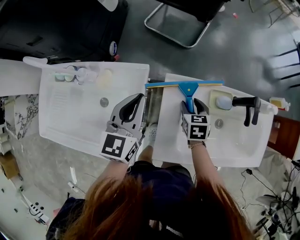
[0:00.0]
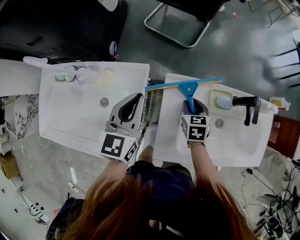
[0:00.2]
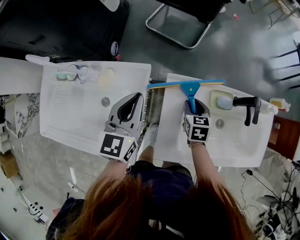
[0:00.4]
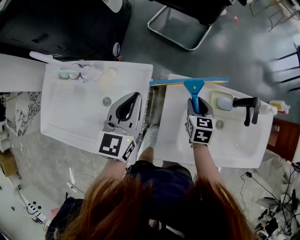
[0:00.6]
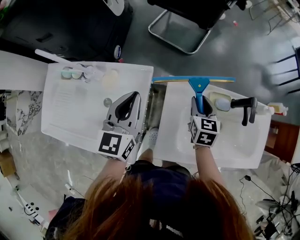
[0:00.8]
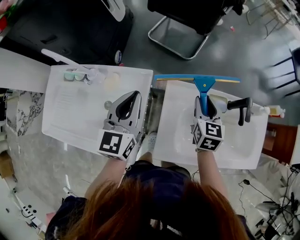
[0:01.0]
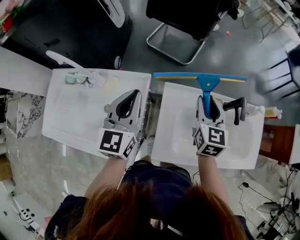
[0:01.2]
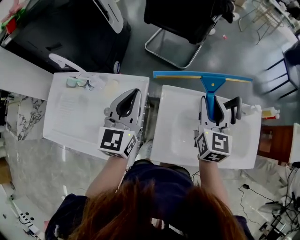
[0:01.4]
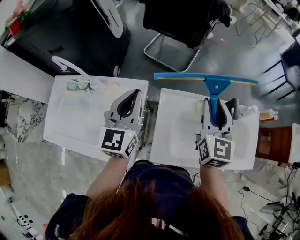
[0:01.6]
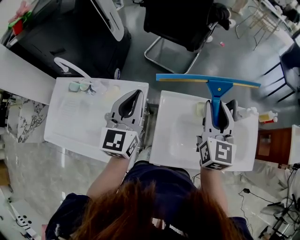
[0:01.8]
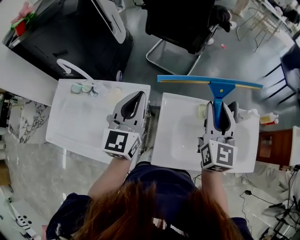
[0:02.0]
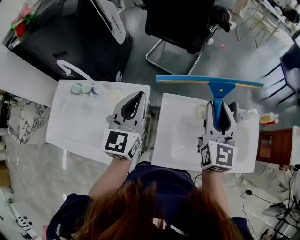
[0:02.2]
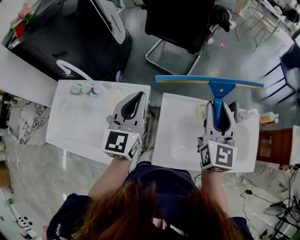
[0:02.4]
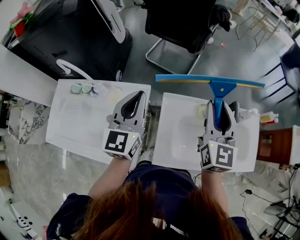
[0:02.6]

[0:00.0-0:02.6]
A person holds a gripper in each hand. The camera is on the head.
0.0 to 1.2 s: The right gripper travels upward by approximately 20 cm, and tilts its fingers some 30 degrees upward. Meanwhile the left gripper heads upward, covering about 10 cm.
1.2 to 2.6 s: The right gripper heads upward, covering approximately 15 cm; the left gripper heads upward, covering approximately 5 cm.

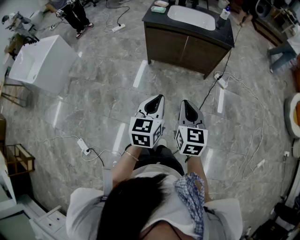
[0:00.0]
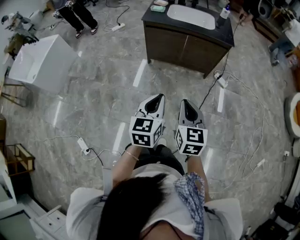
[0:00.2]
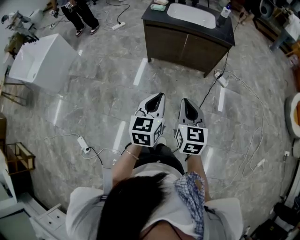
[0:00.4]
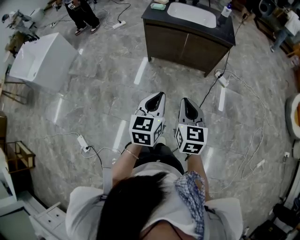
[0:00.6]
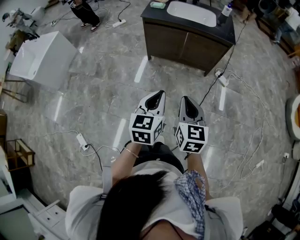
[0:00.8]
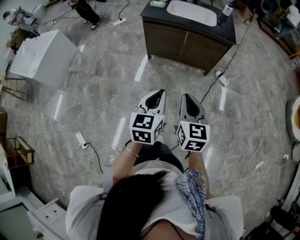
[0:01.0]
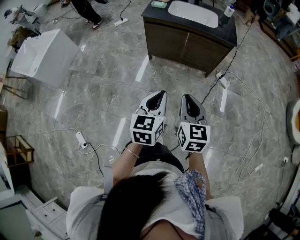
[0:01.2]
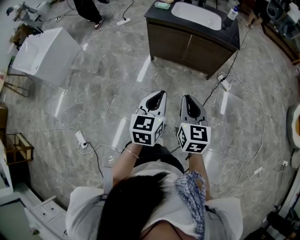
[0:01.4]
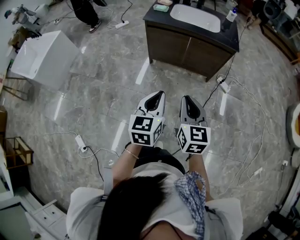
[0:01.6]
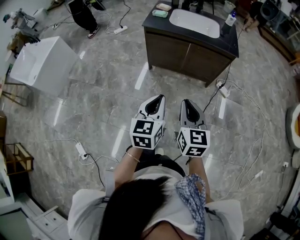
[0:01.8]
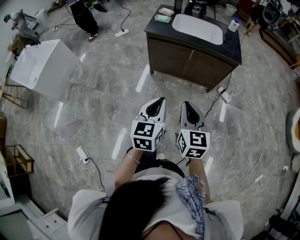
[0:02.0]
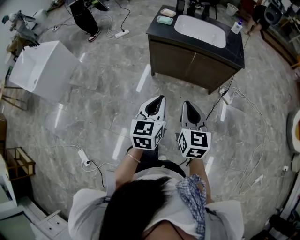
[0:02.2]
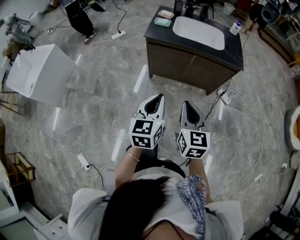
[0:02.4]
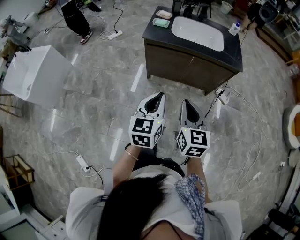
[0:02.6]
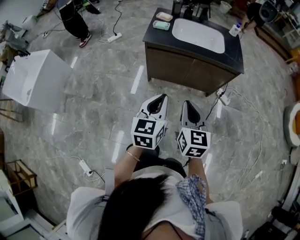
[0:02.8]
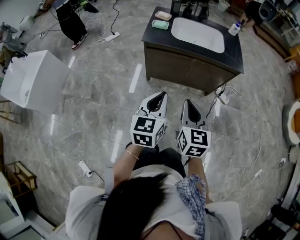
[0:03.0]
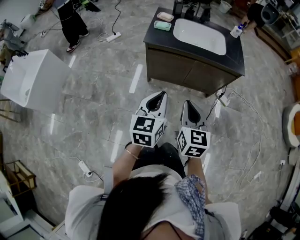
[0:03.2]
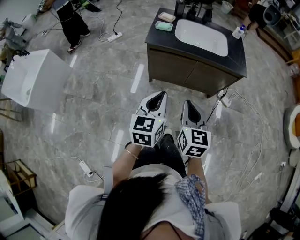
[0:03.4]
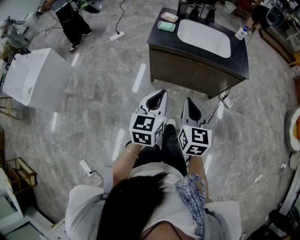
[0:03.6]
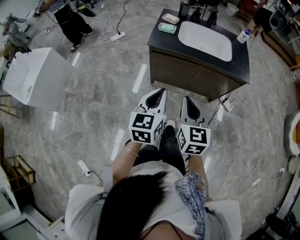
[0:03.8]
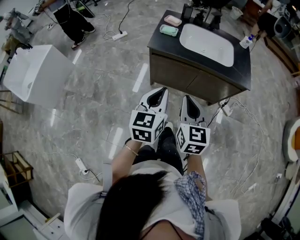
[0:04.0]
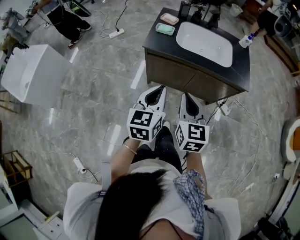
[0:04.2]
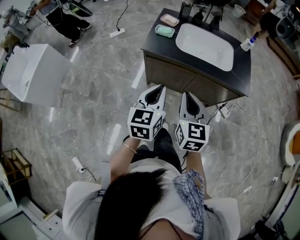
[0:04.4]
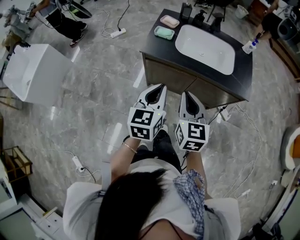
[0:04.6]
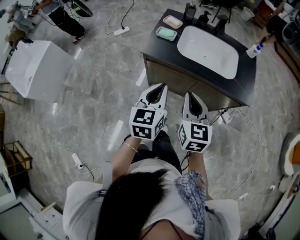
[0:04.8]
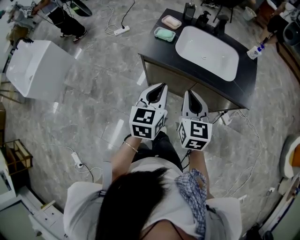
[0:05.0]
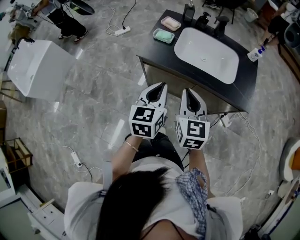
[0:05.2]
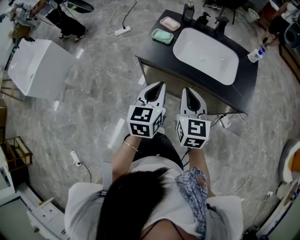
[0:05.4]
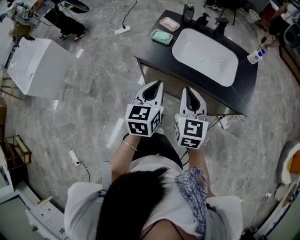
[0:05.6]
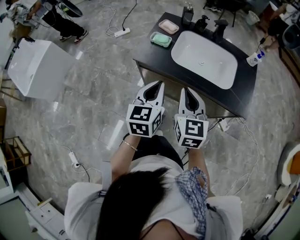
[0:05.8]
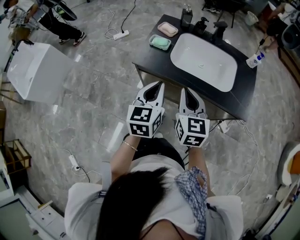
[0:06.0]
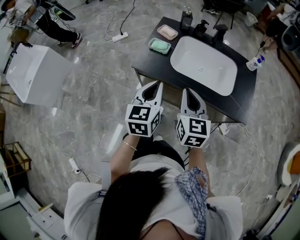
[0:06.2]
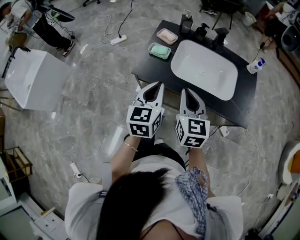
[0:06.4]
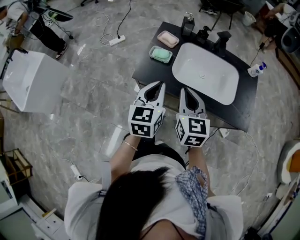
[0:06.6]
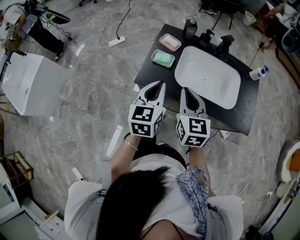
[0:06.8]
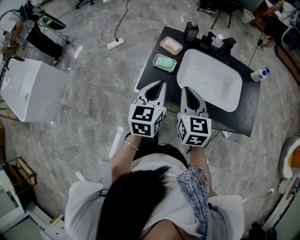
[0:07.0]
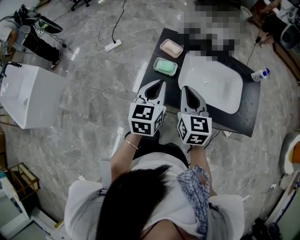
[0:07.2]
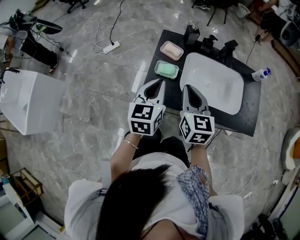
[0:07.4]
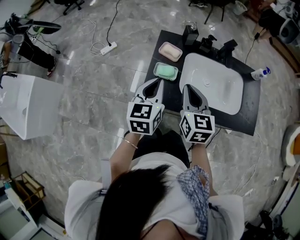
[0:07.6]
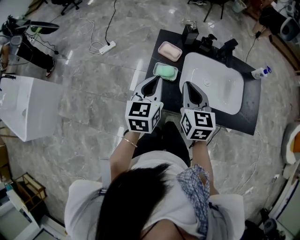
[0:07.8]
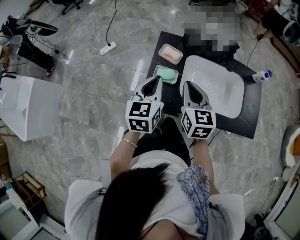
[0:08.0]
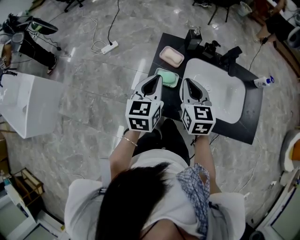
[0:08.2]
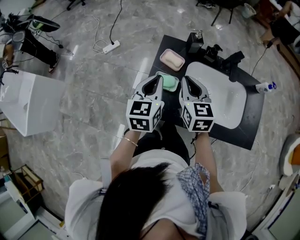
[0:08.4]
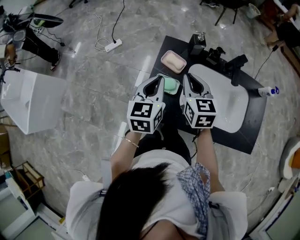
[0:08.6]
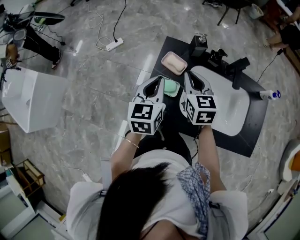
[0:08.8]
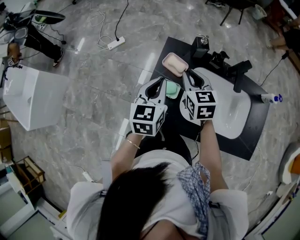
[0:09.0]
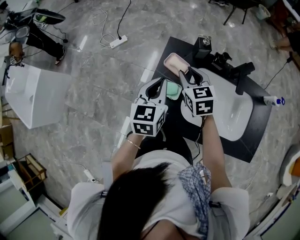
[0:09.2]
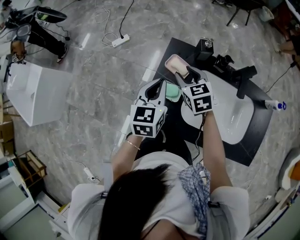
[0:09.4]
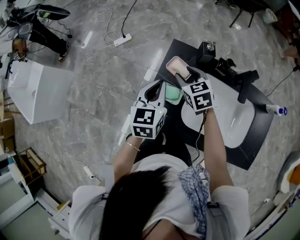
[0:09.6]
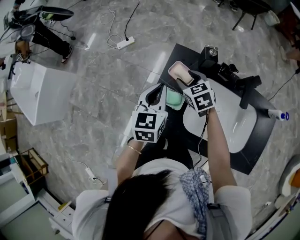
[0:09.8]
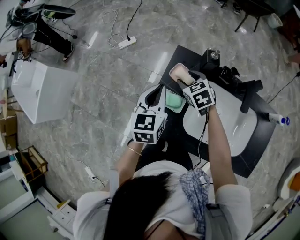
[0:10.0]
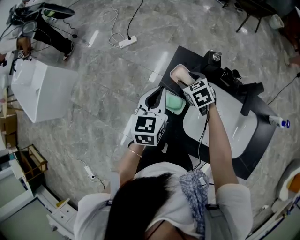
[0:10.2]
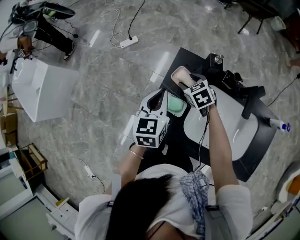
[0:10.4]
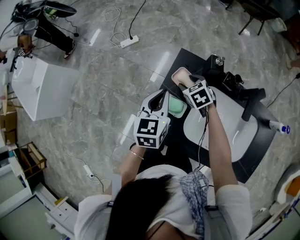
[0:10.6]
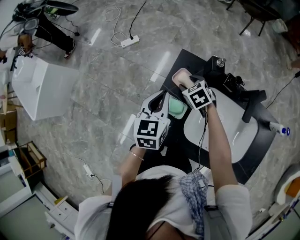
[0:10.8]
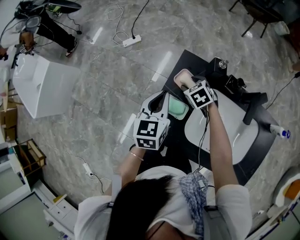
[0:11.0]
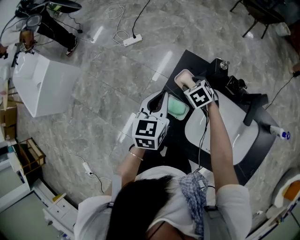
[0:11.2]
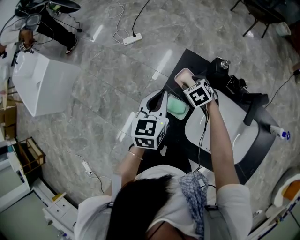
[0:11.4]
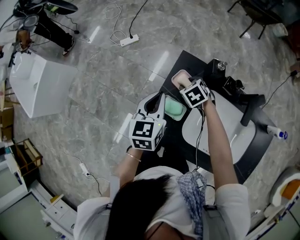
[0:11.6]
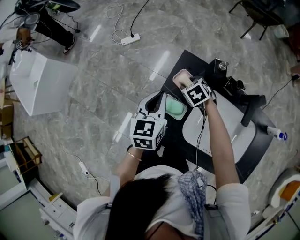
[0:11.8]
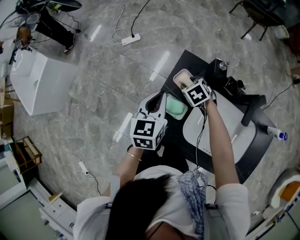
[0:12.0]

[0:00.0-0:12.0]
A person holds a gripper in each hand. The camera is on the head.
0.0 to 1.6 s: The grippers both shift forward by roughly 5 cm.
1.6 to 3.0 s: The two grippers go roughly 25 cm forward and to the left.
3.0 to 4.4 s: The two grippers go about 15 cm forward.
4.4 to 6.0 s: The grippers both shift forward by approximately 15 cm.
6.0 to 7.6 s: Both grippers move forward and to the left, approximately 25 cm.
7.6 to 9.0 s: The right gripper goes about 20 cm forward; the left gripper shifts some 10 cm forward.
9.0 to 10.4 s: The left gripper moves some 5 cm. Meanwhile the right gripper goes some 15 cm downward and forward, changes its angle by roughly 30 degrees, and opens its fingers.
10.4 to 12.0 s: The grippers move only a little.

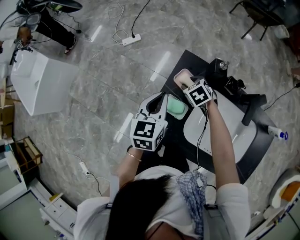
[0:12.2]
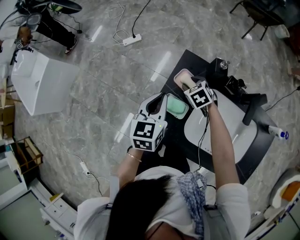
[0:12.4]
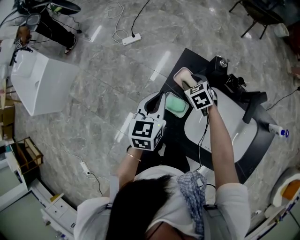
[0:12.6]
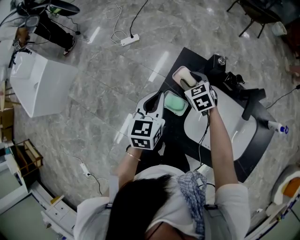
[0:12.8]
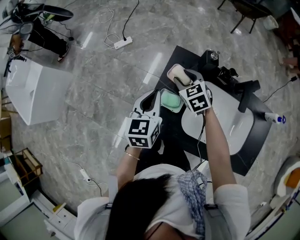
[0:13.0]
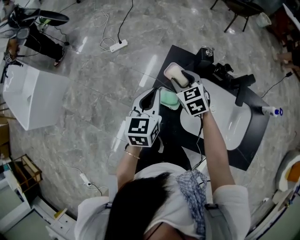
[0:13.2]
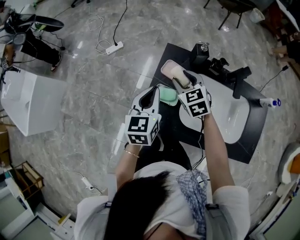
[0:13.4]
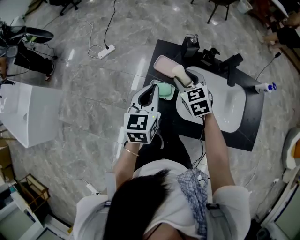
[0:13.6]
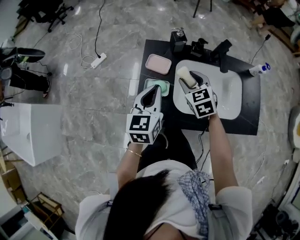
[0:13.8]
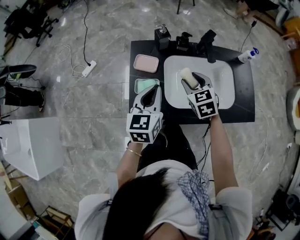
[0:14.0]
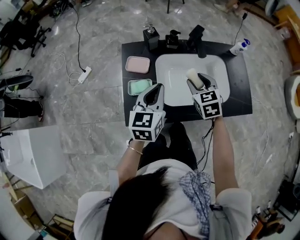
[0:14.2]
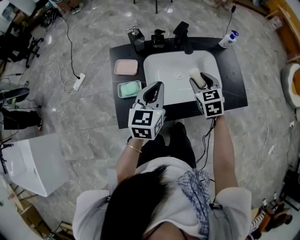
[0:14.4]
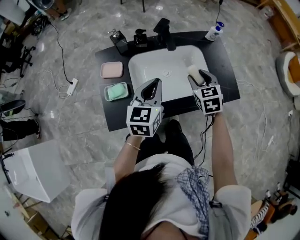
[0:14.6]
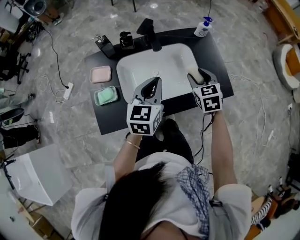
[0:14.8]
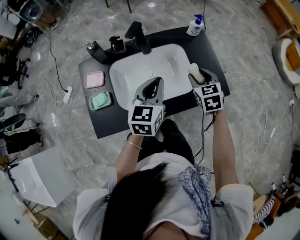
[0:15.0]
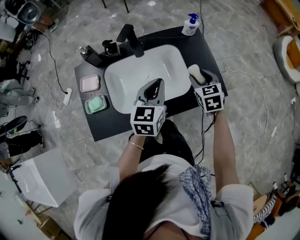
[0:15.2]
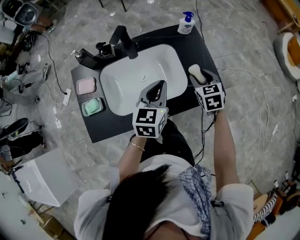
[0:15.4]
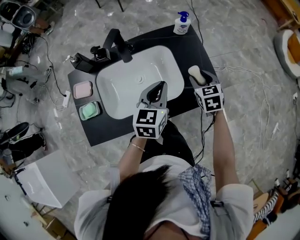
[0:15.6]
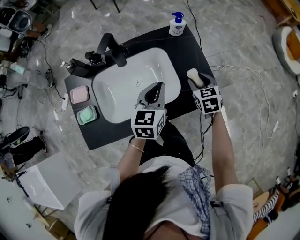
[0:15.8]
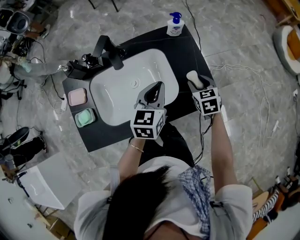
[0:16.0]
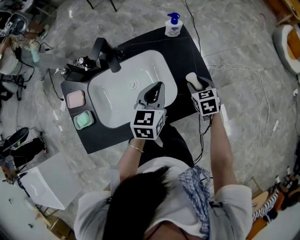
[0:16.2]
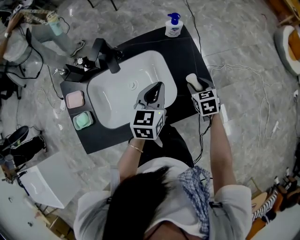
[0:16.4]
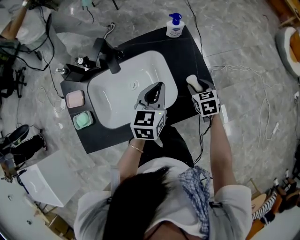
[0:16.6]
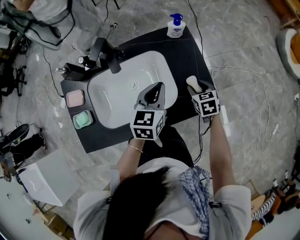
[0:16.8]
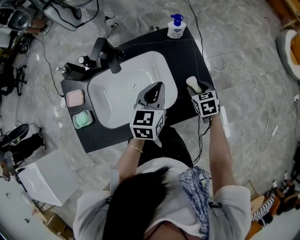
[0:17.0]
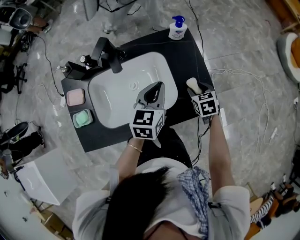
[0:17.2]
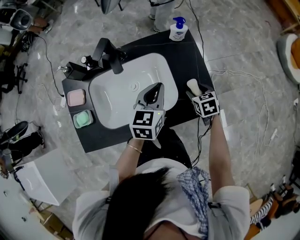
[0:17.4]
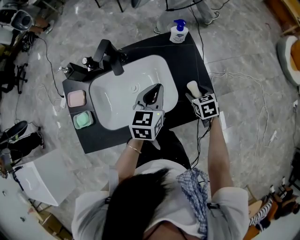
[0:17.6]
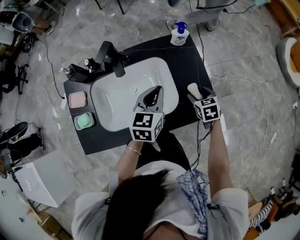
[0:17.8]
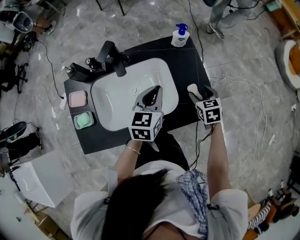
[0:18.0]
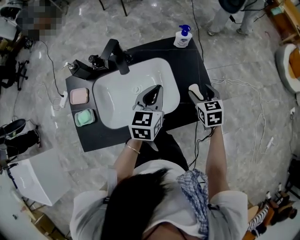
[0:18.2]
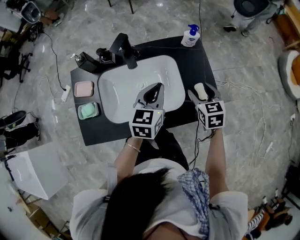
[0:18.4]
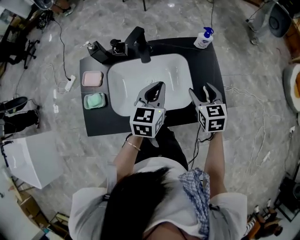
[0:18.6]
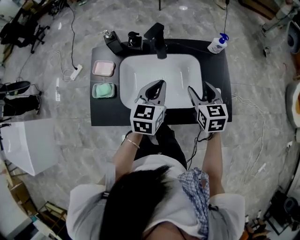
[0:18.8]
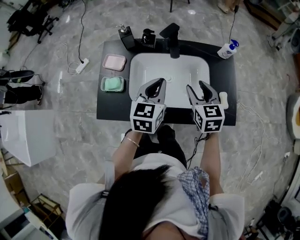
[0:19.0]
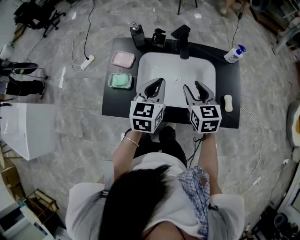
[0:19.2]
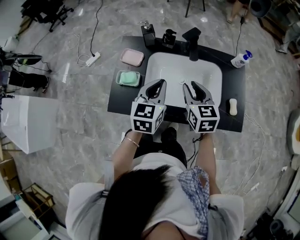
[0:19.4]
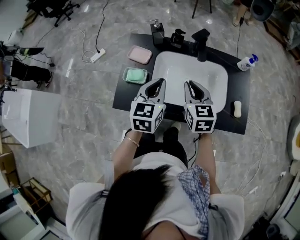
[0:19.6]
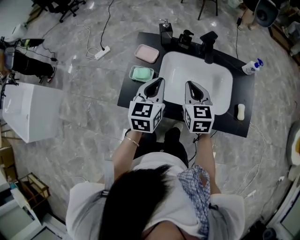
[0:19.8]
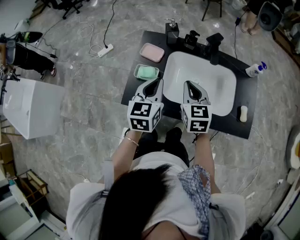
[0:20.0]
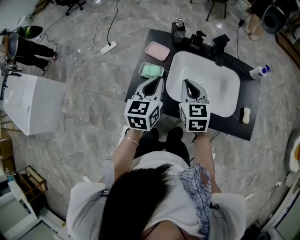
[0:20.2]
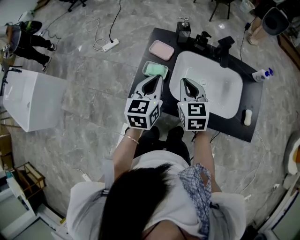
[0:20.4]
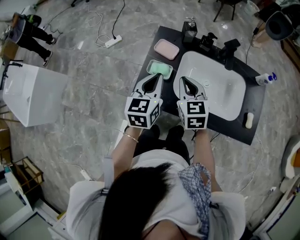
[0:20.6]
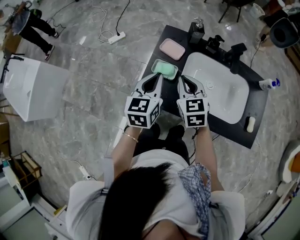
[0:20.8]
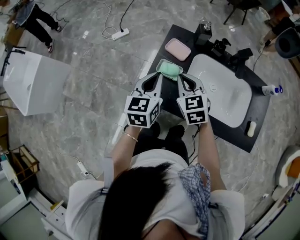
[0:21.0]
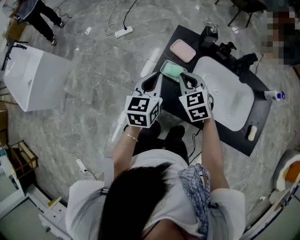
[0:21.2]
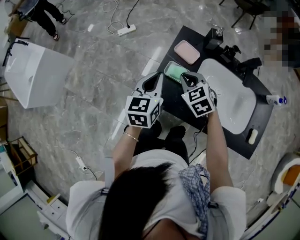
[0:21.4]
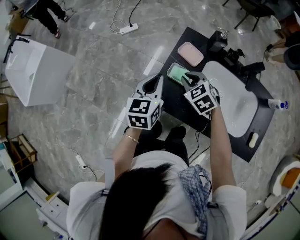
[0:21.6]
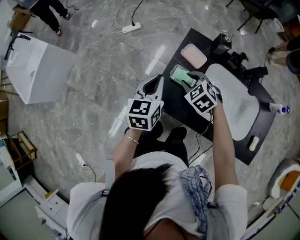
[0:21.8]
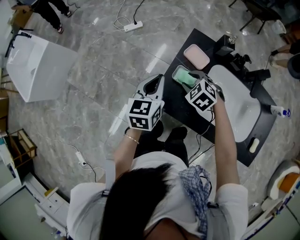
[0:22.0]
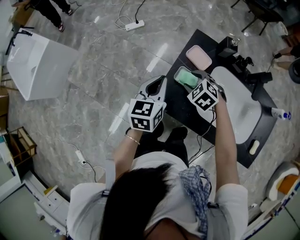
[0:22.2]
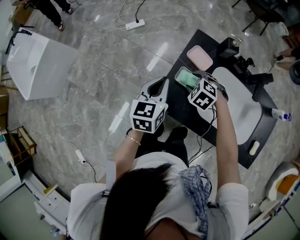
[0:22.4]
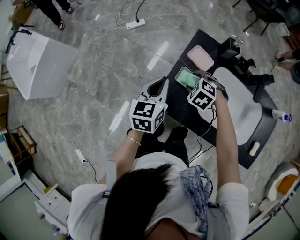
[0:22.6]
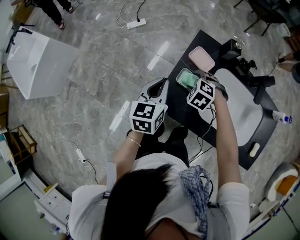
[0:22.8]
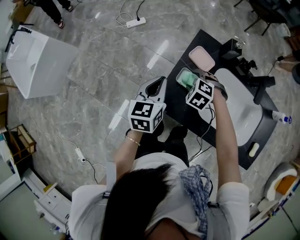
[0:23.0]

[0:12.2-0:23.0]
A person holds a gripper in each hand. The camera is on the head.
12.2 to 13.8 s: The right gripper heads upward, covering some 15 cm, and turns by about 40 degrees. Meanwhile the left gripper changes place by roughly 10 cm, and turns by approximately 20 degrees.
13.8 to 15.2 s: The left gripper changes place by roughly 35 cm, and changes its angle by about 30 degrees. The right gripper moves roughly 40 cm, and swivels roughly 30 degrees.
15.2 to 16.8 s: The right gripper shifts some 15 cm downward and to the right, while the left gripper shifts approximately 10 cm to the right and forward.
16.8 to 18.4 s: The right gripper heads upward and to the left, covering roughly 10 cm. Meanwhile the left gripper goes some 5 cm to the left.
18.4 to 20.0 s: Both grippers travel together to the left, roughly 35 cm. The right gripper changes its angle by some 20 degrees, and closes up. The left gripper rotates about 30 degrees.
20.0 to 21.4 s: The right gripper shifts roughly 20 cm to the left, downward and forward, and swivels some 40 degrees, while the left gripper is displaced to the left by approximately 15 cm.
21.4 to 23.0 s: The left gripper moves about 5 cm. Meanwhile the right gripper travels downward by approximately 10 cm, rotates some 40 degrees, and opens up.
